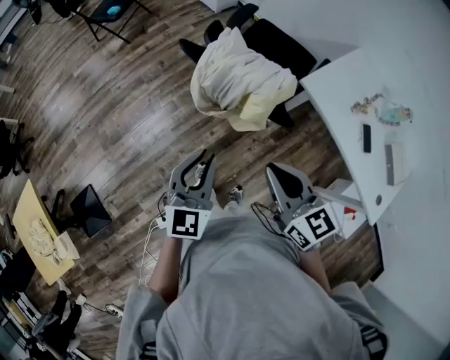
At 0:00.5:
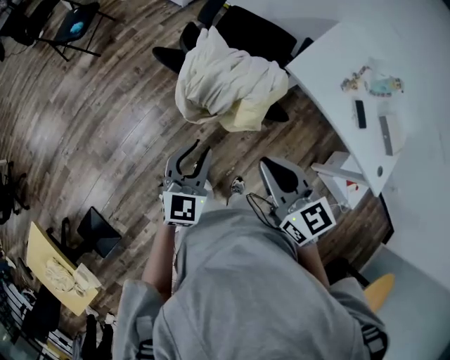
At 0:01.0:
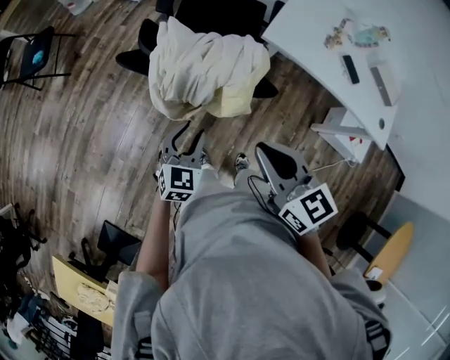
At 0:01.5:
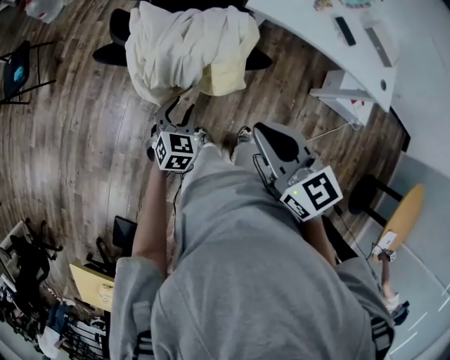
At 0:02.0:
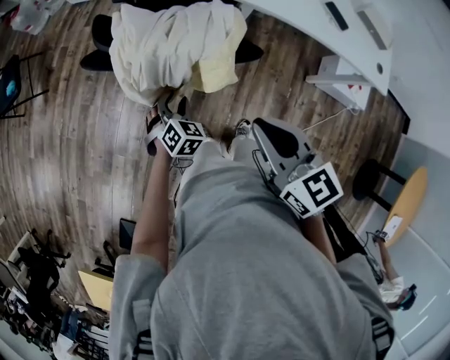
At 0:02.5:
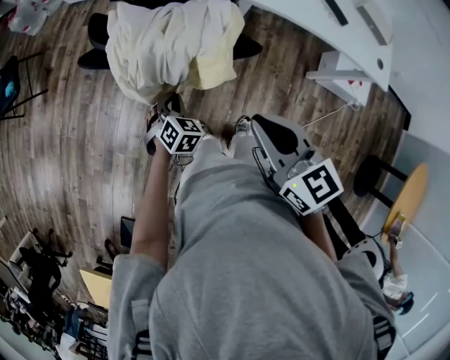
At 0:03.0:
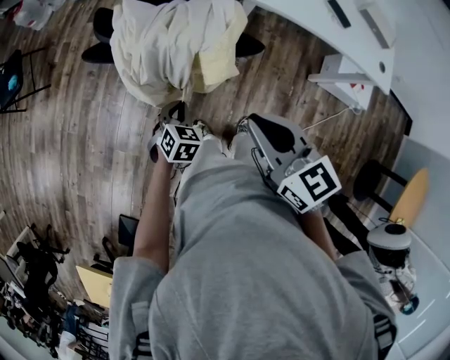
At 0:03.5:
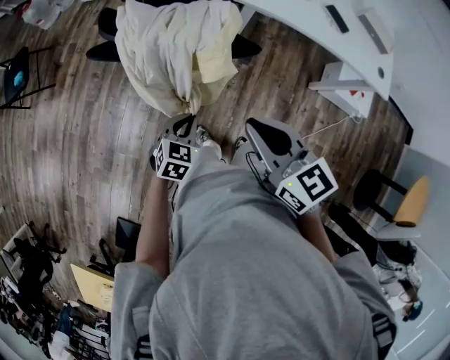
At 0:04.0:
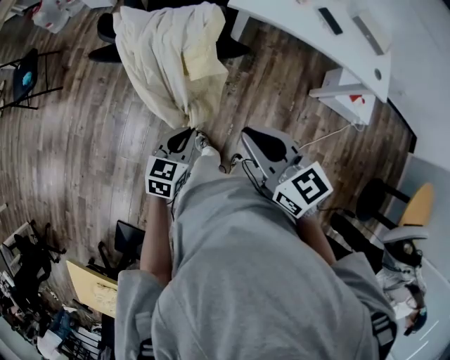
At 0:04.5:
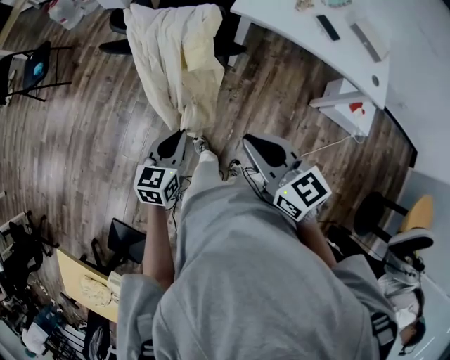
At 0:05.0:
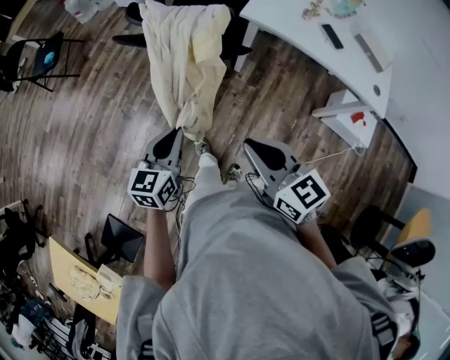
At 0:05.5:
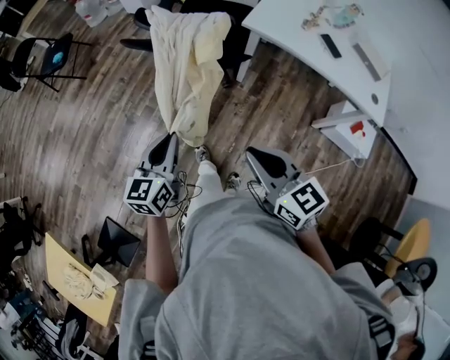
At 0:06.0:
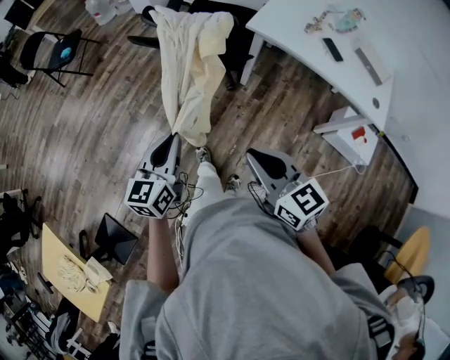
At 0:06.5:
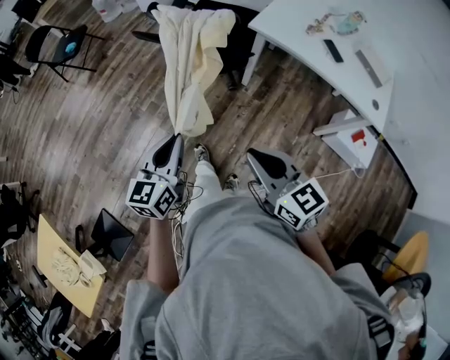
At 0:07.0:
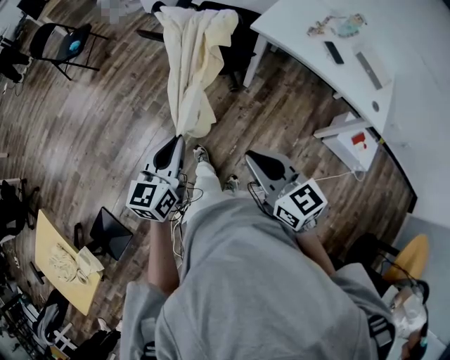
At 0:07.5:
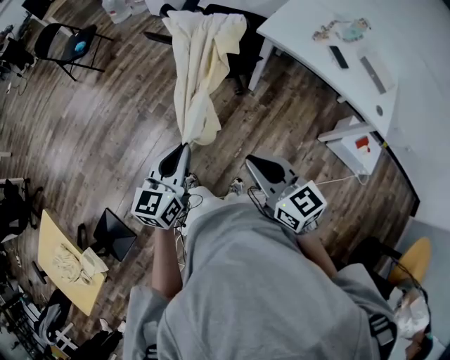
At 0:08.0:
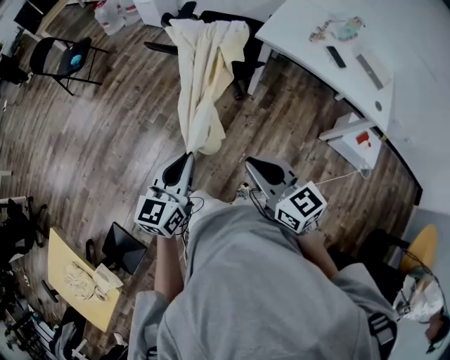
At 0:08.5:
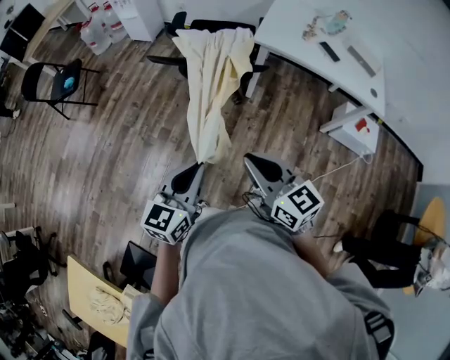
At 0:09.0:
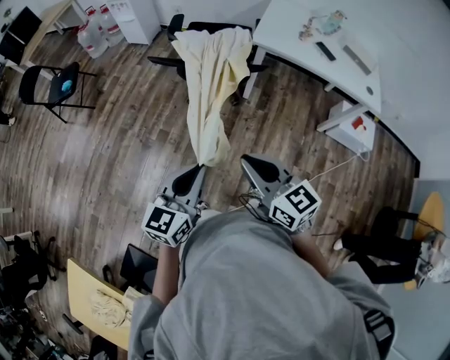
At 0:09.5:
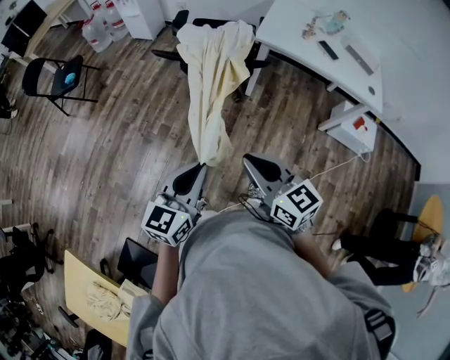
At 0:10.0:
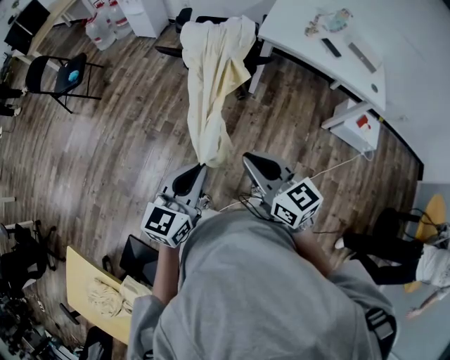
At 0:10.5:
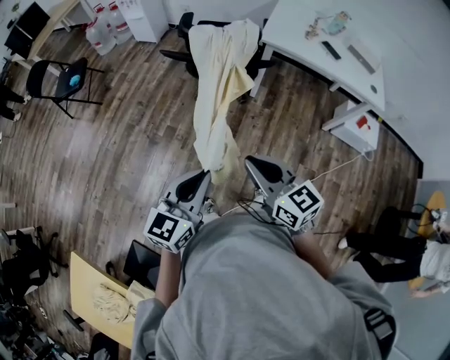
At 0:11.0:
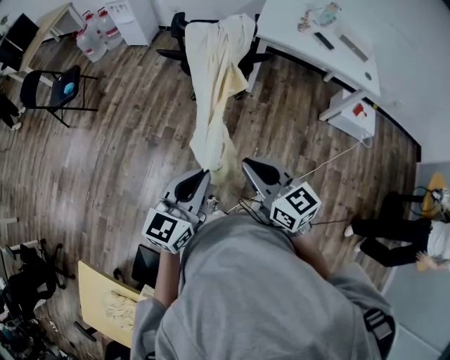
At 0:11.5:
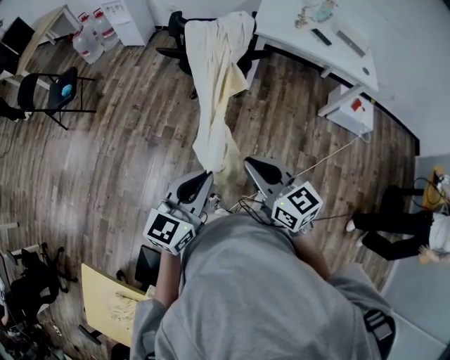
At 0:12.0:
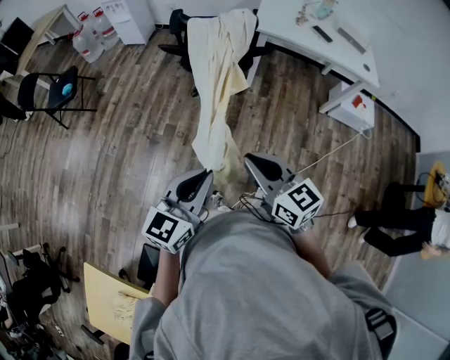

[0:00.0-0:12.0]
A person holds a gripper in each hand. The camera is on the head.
0:00.0 to 0:02.0: The left gripper heads downward, covering approximately 25 cm, tips its fingers downward by some 40 degrees, and opens up. Meanwhile the right gripper changes place by roughly 5 cm, and rotates approximately 30 degrees.
0:02.0 to 0:04.0: The right gripper heads backward, covering some 5 cm. The left gripper moves backward and upward, about 15 cm, swivels about 40 degrees, and closes its fingers.
0:04.0 to 0:06.0: The left gripper is displaced upward and backward by about 20 cm, and changes its angle by about 40 degrees. The right gripper goes some 15 cm backward.
0:06.0 to 0:08.0: The left gripper travels backward by roughly 5 cm. Meanwhile the right gripper travels to the left by roughly 5 cm.
0:08.0 to 0:10.0: The right gripper heads to the left, covering some 10 cm. Meanwhile the left gripper travels to the left and backward by roughly 10 cm.
0:10.0 to 0:12.0: The right gripper goes about 10 cm to the left. The left gripper is displaced to the left and backward by roughly 10 cm.

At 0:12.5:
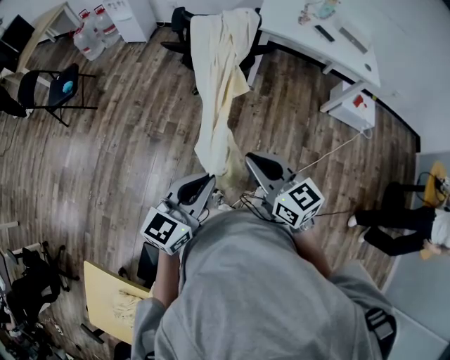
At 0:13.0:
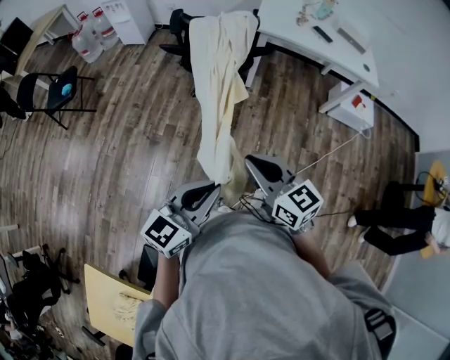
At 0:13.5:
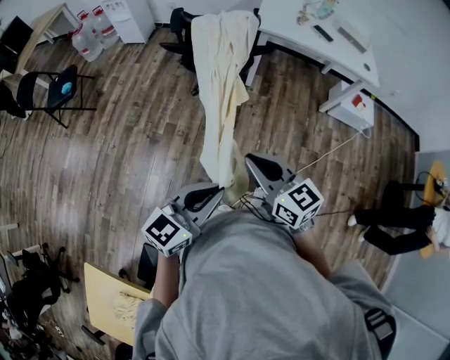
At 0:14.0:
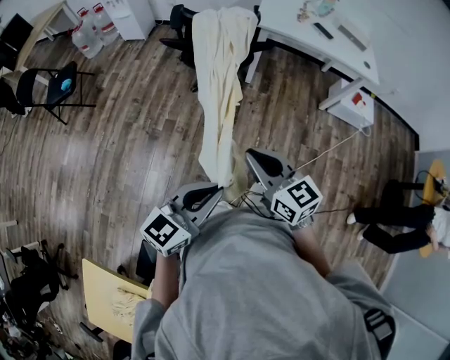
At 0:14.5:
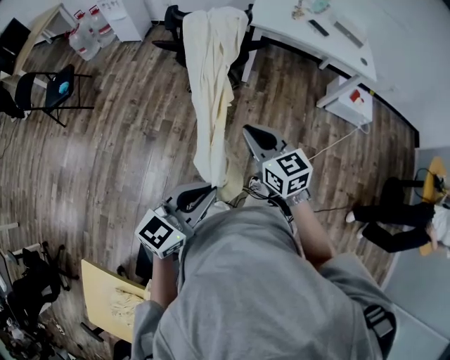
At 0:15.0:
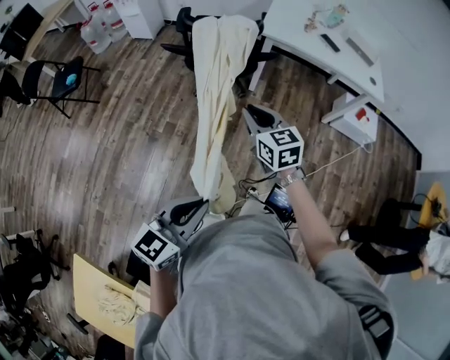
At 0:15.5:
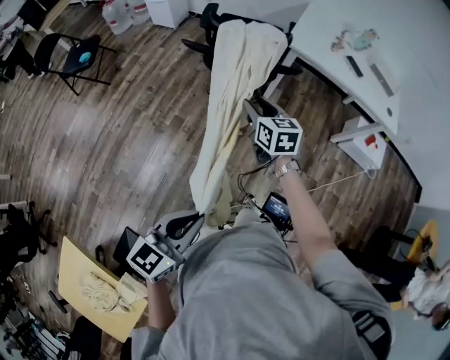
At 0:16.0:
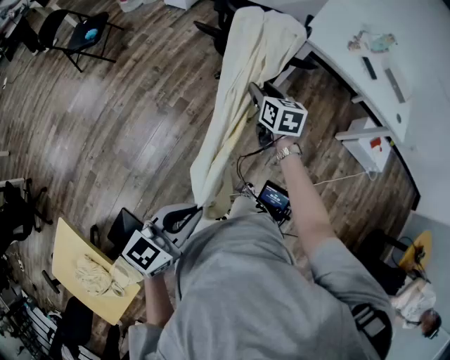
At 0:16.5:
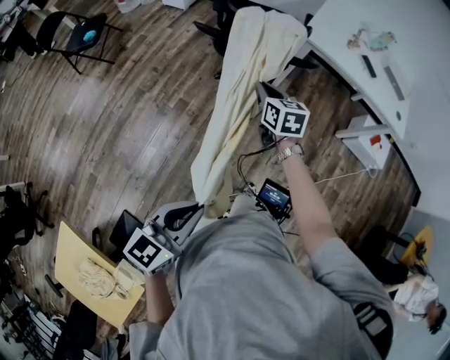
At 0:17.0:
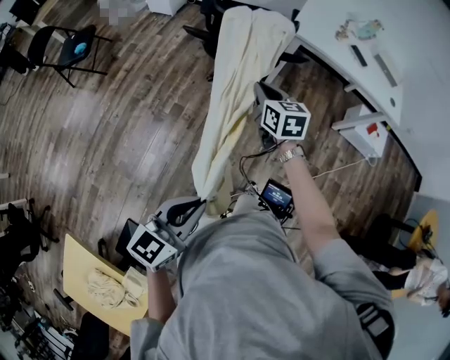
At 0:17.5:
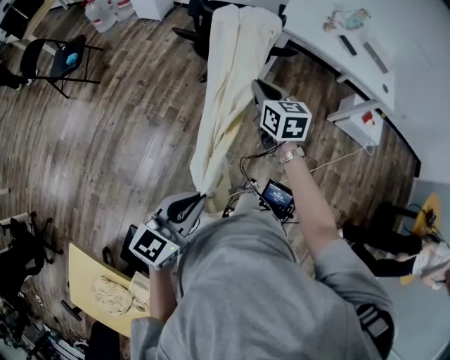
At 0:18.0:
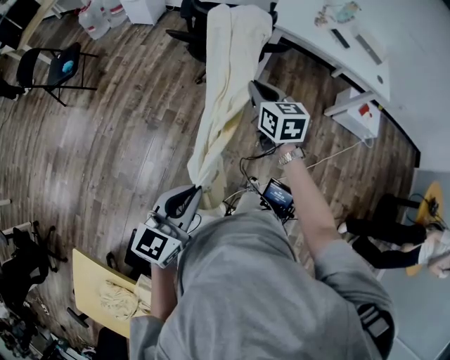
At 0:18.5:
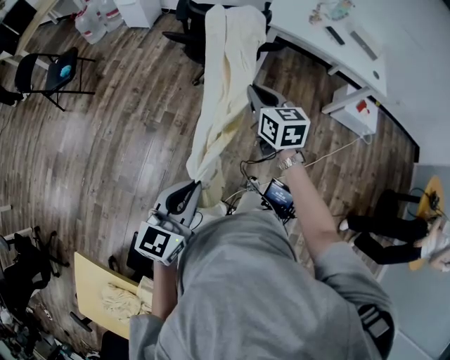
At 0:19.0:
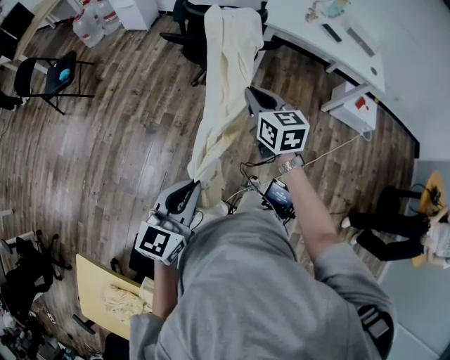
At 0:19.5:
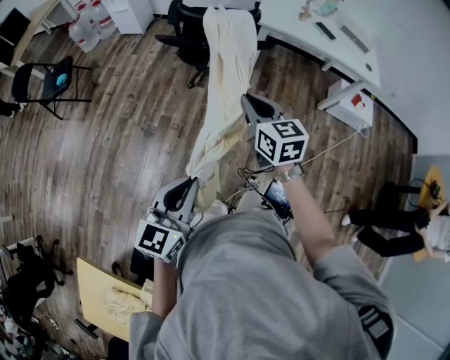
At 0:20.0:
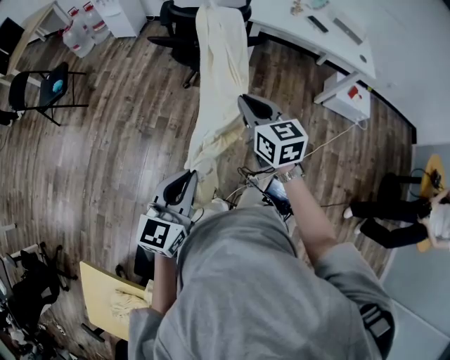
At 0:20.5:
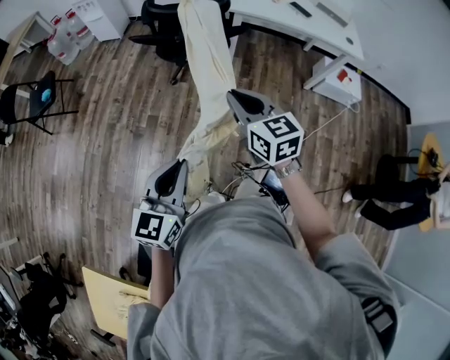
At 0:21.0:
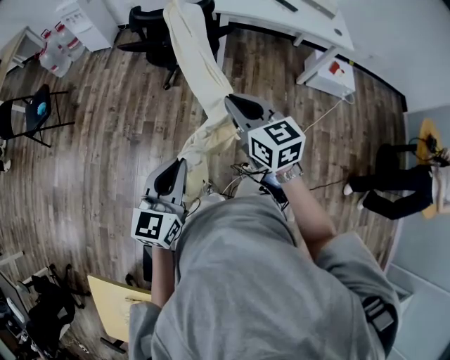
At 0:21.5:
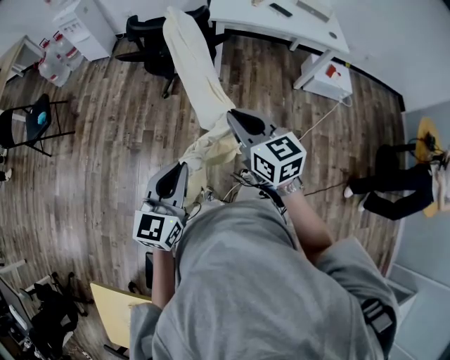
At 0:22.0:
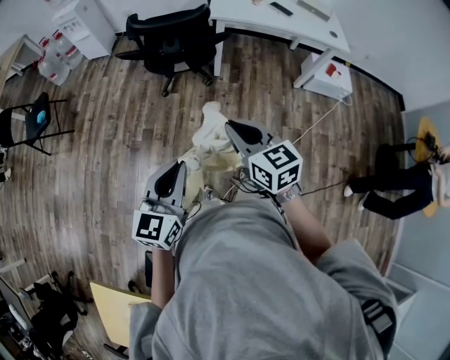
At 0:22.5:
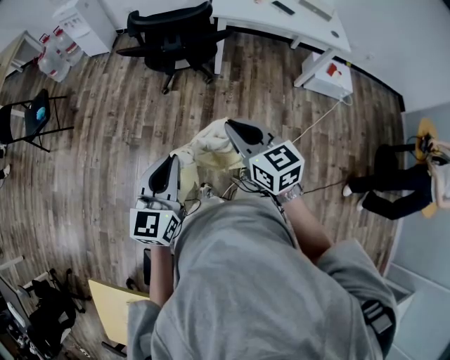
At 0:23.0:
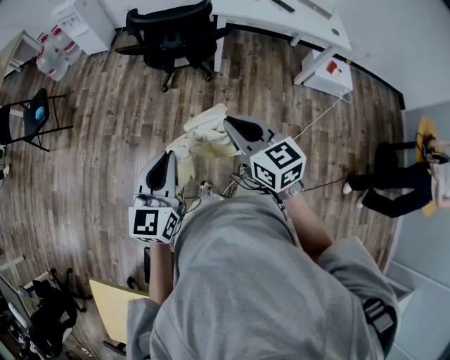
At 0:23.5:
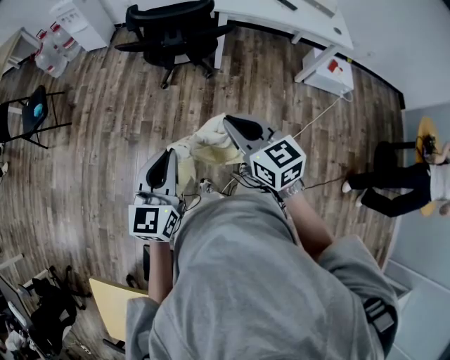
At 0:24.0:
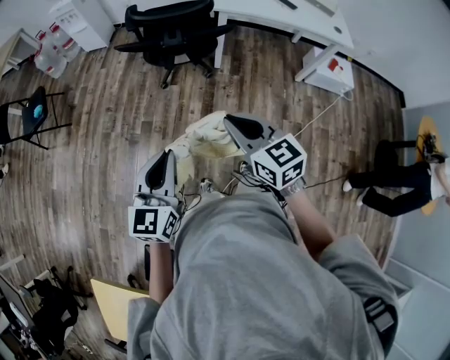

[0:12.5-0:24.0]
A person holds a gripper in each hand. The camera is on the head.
0:12.5 to 0:14.5: The right gripper goes roughly 5 cm forward.
0:14.5 to 0:16.5: The left gripper ends up about 5 cm from where it was, while the right gripper heads forward, covering some 25 cm, and opens and closes again.
0:16.5 to 0:18.5: The right gripper moves backward and upward, about 10 cm.
0:18.5 to 0:20.0: The right gripper shifts some 5 cm backward.
0:20.0 to 0:22.0: The right gripper is displaced backward by about 10 cm.
0:22.0 to 0:24.0: The grippers make only small movements.

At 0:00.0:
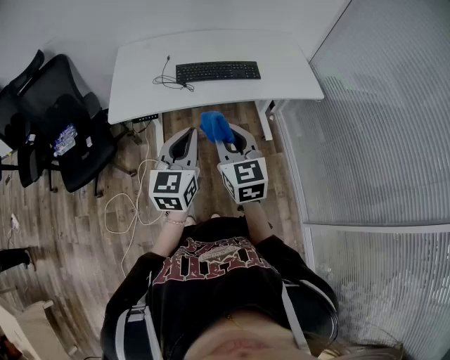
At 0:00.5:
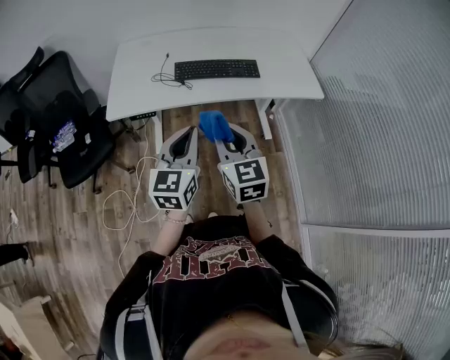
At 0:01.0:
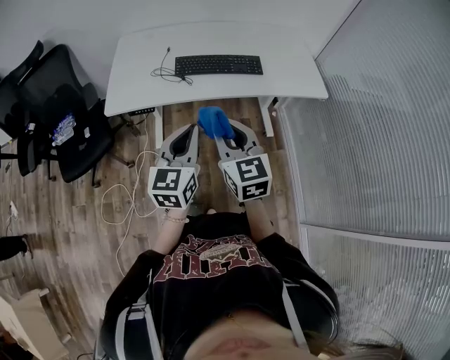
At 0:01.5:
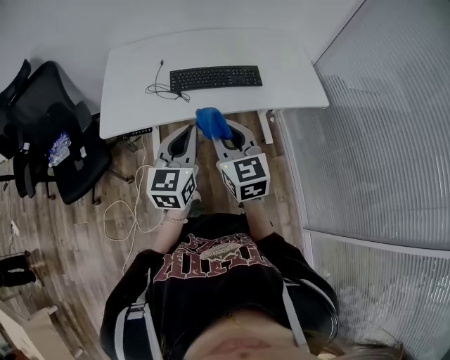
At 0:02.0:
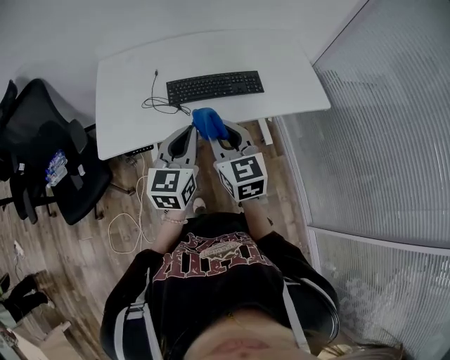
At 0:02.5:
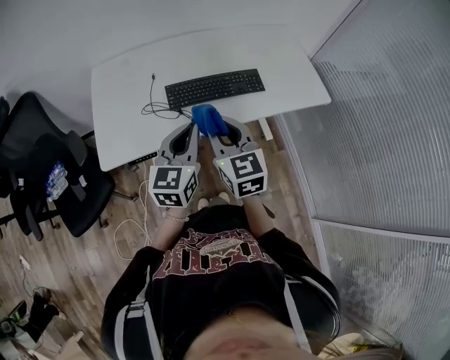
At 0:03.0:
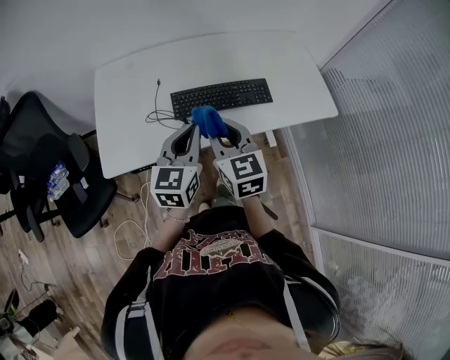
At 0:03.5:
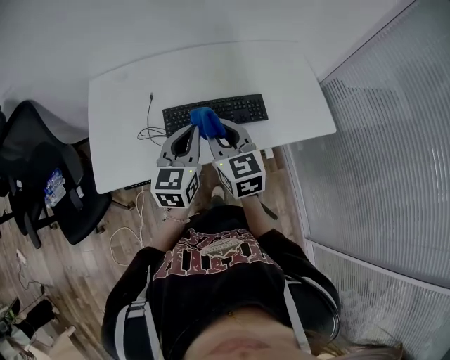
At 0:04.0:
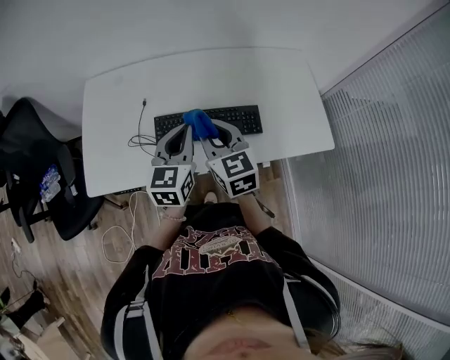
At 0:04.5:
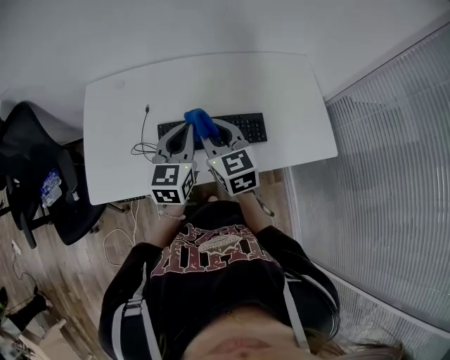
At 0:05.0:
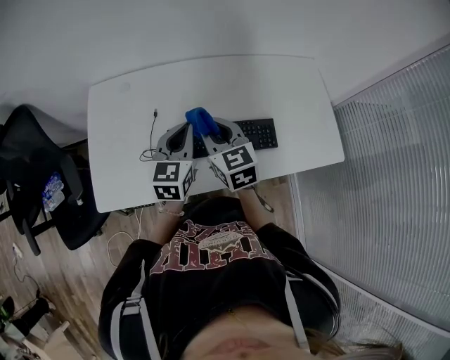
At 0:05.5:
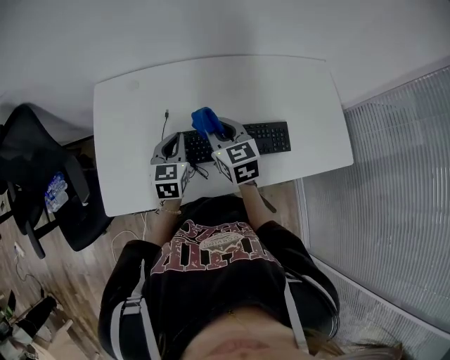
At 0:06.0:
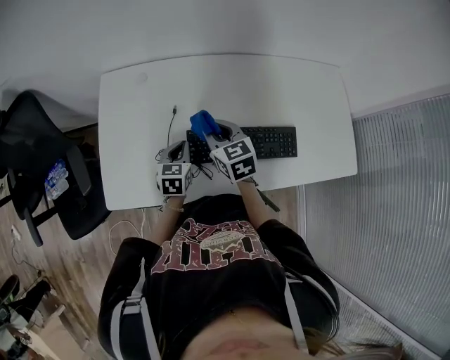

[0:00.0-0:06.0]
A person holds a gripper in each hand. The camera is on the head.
0:00.0 to 0:02.0: Both grippers travel together forward, roughly 20 cm.
0:02.0 to 0:04.0: The grippers both shift forward by approximately 25 cm.
0:04.0 to 0:06.0: The left gripper moves downward, to the left and forward, some 30 cm, and swivels approximately 30 degrees. The right gripper goes roughly 20 cm forward, to the left and downward.
